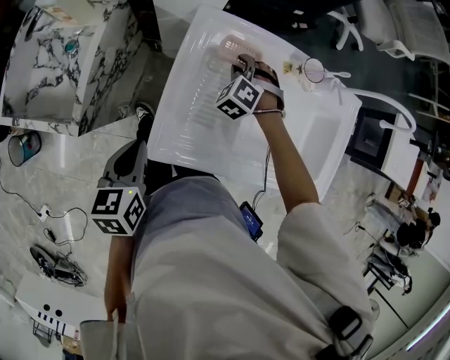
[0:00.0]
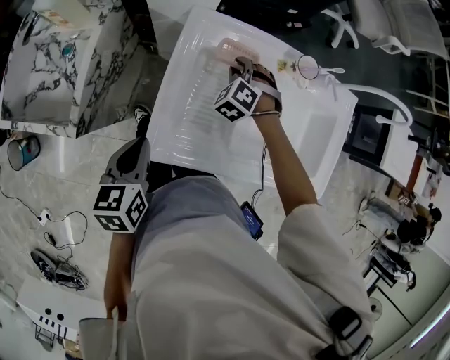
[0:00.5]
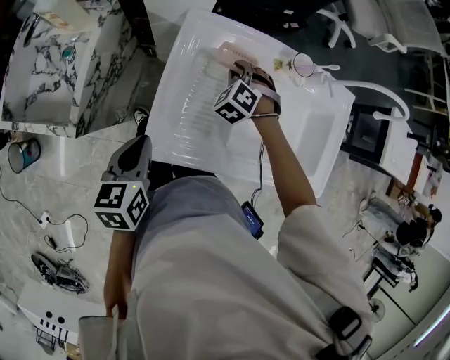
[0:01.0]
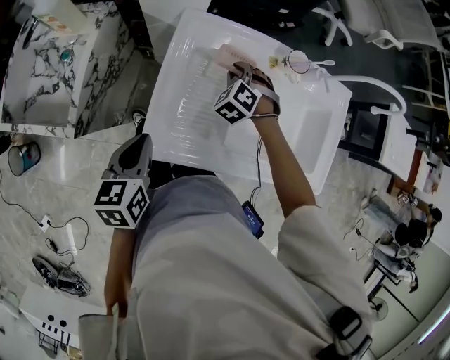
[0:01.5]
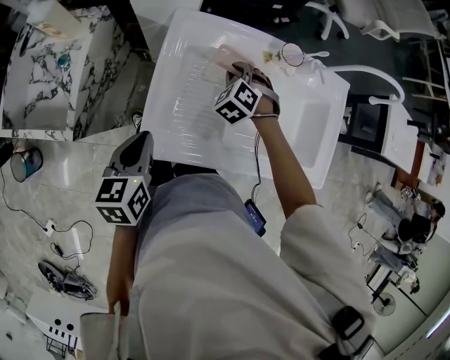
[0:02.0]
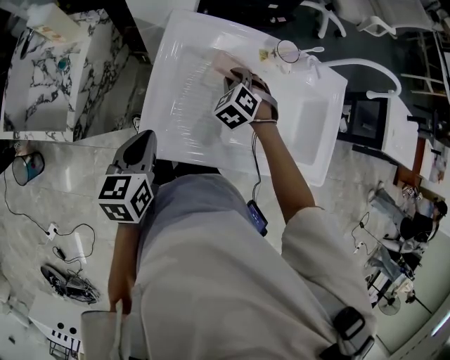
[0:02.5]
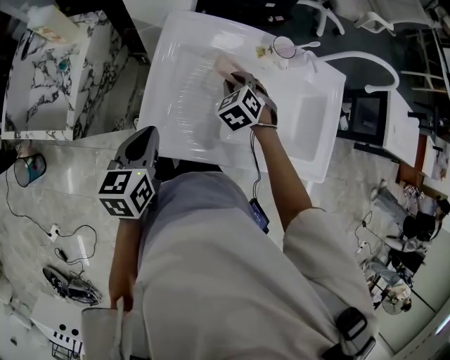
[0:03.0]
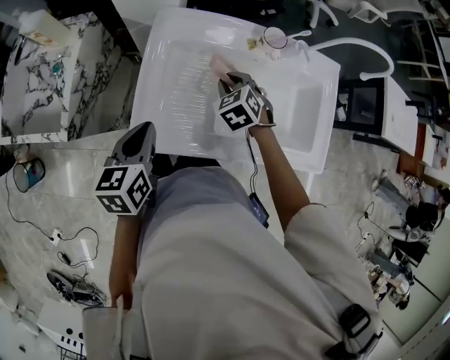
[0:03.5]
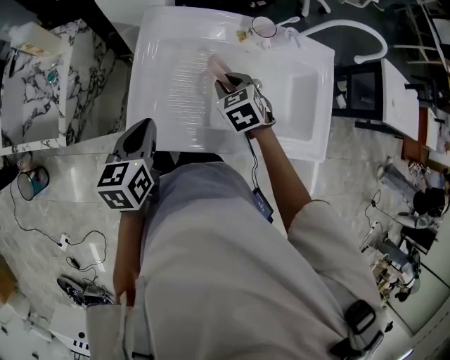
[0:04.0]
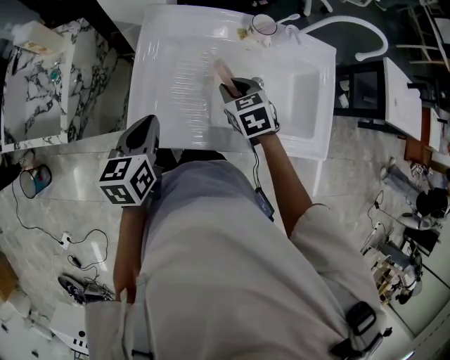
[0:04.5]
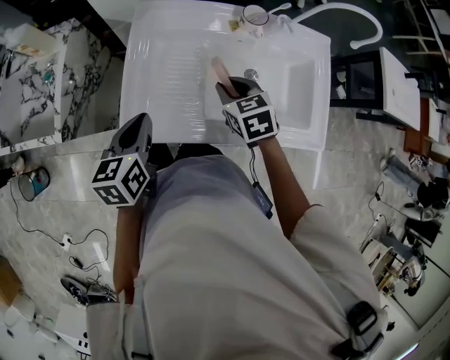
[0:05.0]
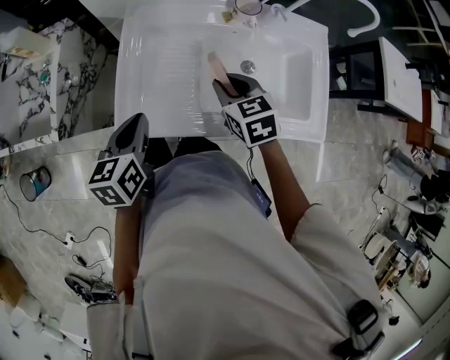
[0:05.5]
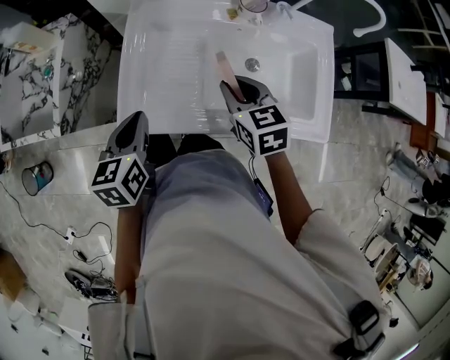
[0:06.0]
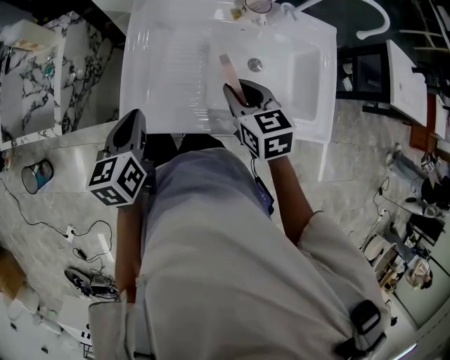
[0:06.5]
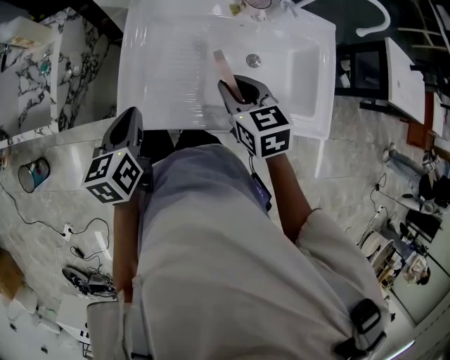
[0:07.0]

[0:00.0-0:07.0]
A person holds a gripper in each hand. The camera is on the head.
0:00.0 to 0:02.0: The left gripper changes place by about 5 cm, while the right gripper heads to the right, covering some 5 cm.
0:02.0 to 0:03.5: The right gripper moves backward, some 5 cm, and changes its angle by about 20 degrees.
0:03.5 to 0:05.0: The right gripper heads backward, covering approximately 5 cm, and changes its angle by approximately 30 degrees.
0:05.0 to 0:07.0: The right gripper moves some 5 cm.

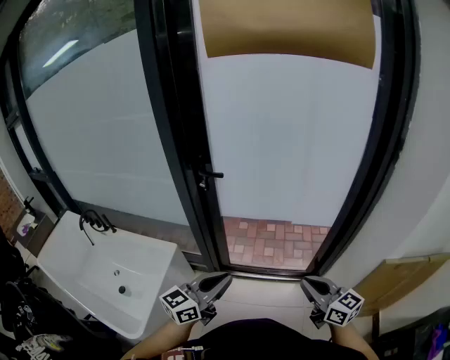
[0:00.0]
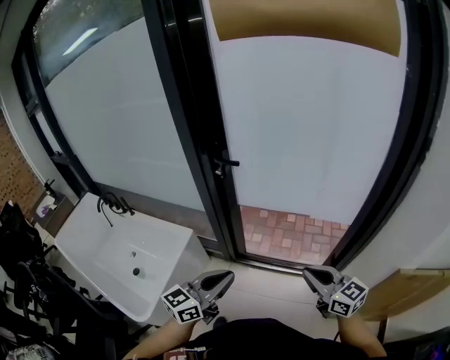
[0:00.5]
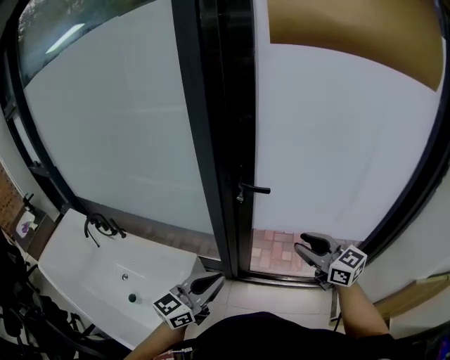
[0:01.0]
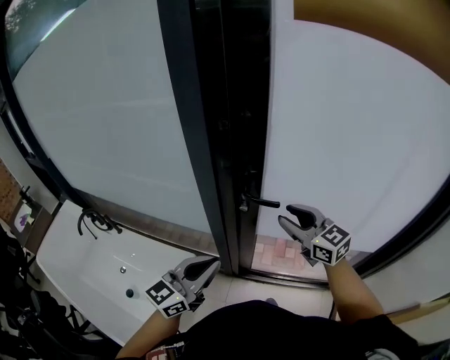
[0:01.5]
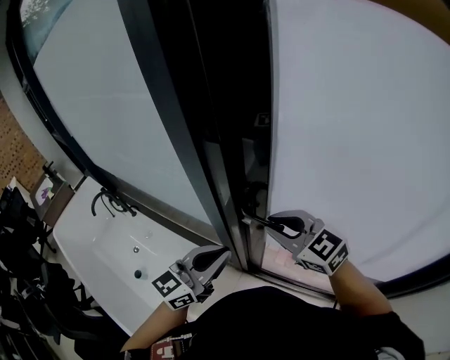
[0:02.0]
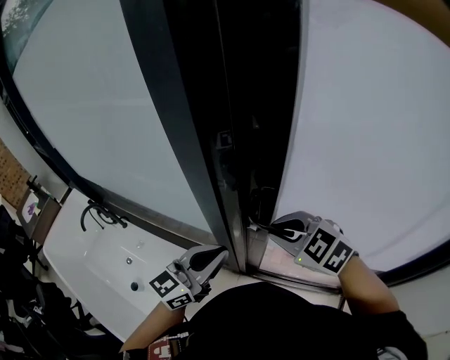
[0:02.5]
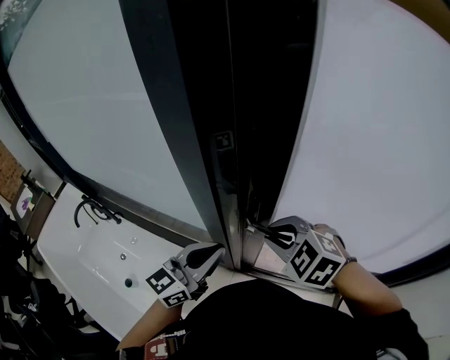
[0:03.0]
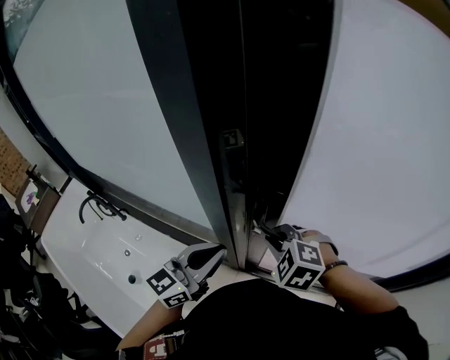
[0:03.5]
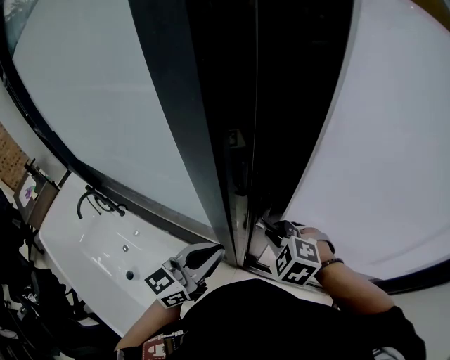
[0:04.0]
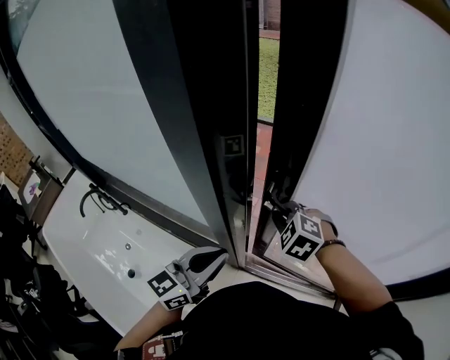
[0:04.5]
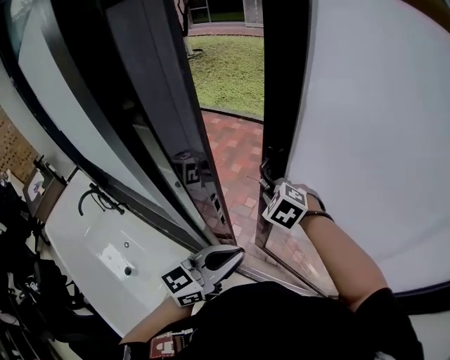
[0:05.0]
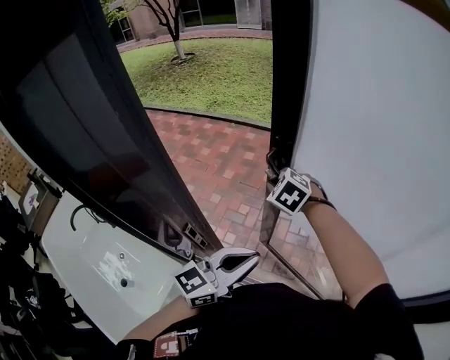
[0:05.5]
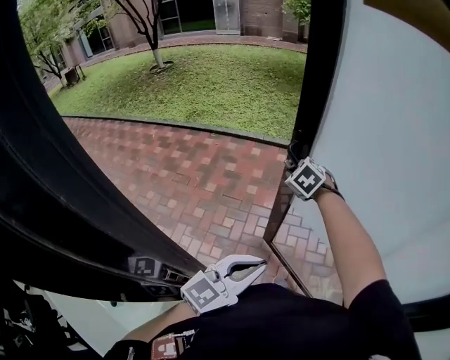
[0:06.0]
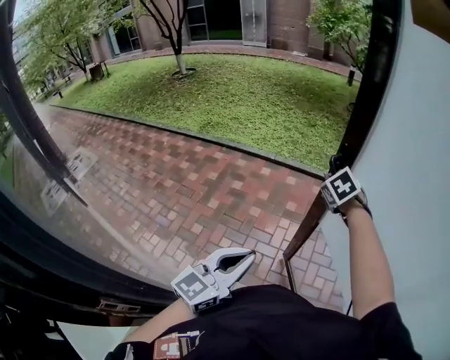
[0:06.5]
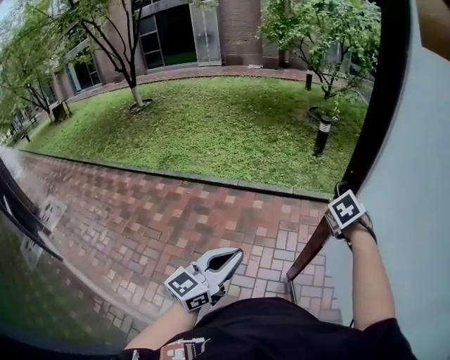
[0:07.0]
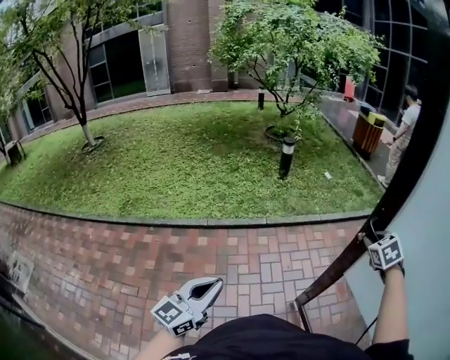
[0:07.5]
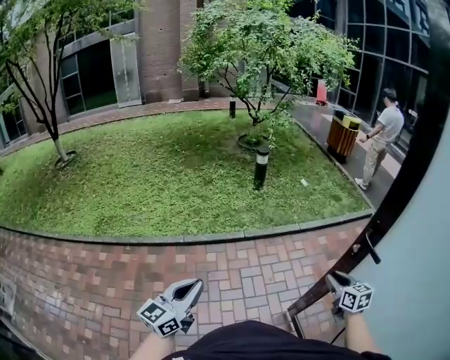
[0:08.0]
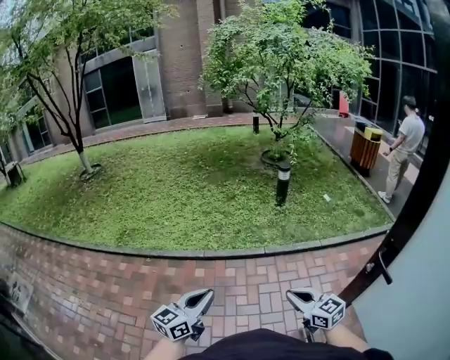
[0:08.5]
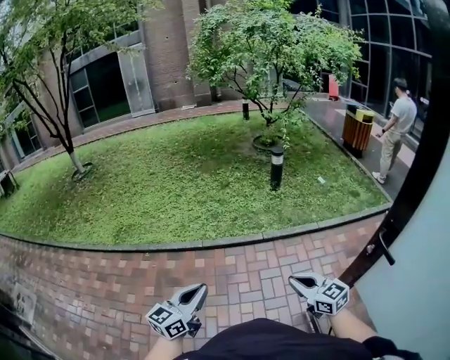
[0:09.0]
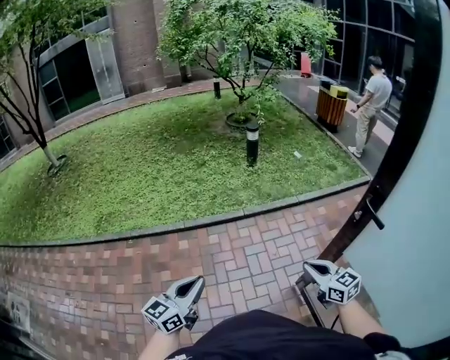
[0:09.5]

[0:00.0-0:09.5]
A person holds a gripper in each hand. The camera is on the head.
0:00.0 to 0:02.0: The right gripper travels forward and to the left by about 50 cm, and changes its angle by roughly 40 degrees. Meanwhile the left gripper shifts some 35 cm forward.
0:02.0 to 0:04.0: The right gripper shifts approximately 10 cm downward, and points its fingers roughly 30 degrees further downward. The left gripper travels to the left by roughly 5 cm.
0:04.0 to 0:05.5: The left gripper heads to the right and forward, covering about 20 cm; the right gripper goes roughly 30 cm forward.
0:05.5 to 0:07.5: The left gripper moves some 60 cm; the right gripper ends up approximately 70 cm from where it was, and changes its angle by approximately 60 degrees.
0:07.5 to 0:09.5: The right gripper moves some 20 cm, rotates some 50 degrees, and opens and closes again.

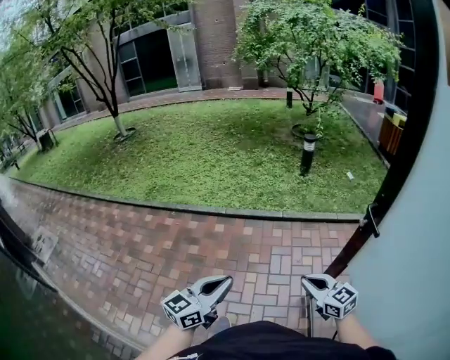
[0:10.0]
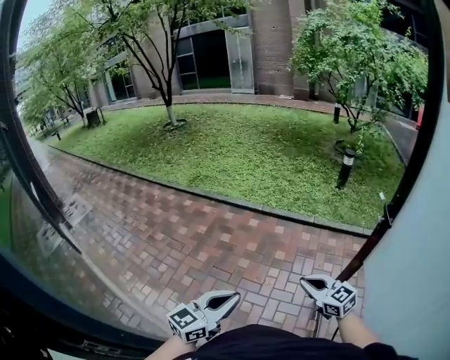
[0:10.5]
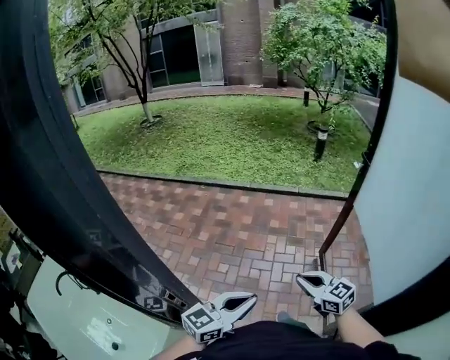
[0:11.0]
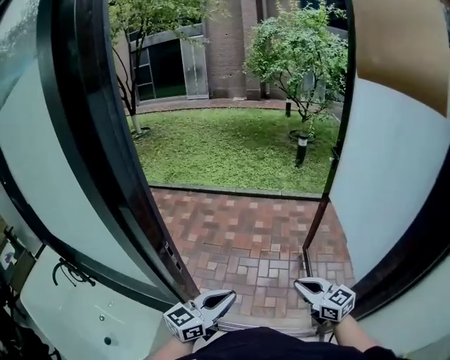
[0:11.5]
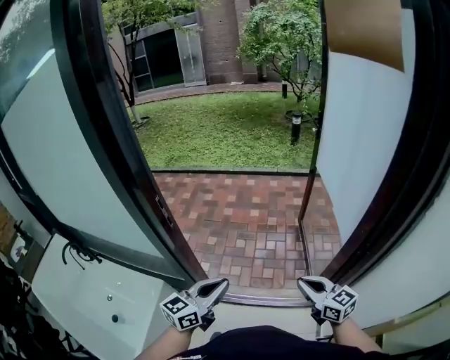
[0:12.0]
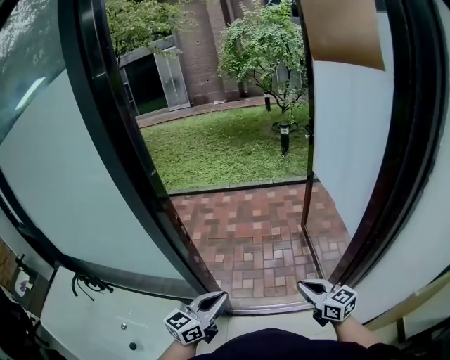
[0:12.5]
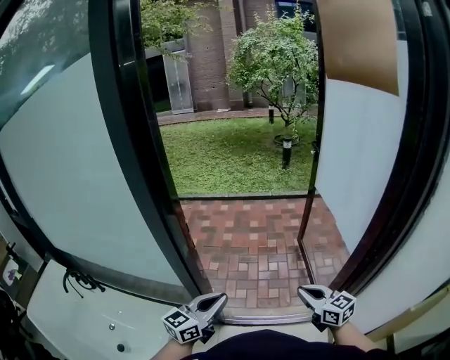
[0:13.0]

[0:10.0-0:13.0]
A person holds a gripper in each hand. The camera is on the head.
0:10.0 to 0:11.5: The two grippers travel together, backward, about 60 cm.
0:11.5 to 0:13.0: The right gripper goes approximately 15 cm backward. Meanwhile the left gripper shifts roughly 15 cm backward and to the left.

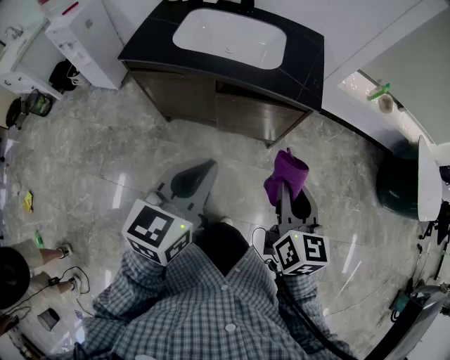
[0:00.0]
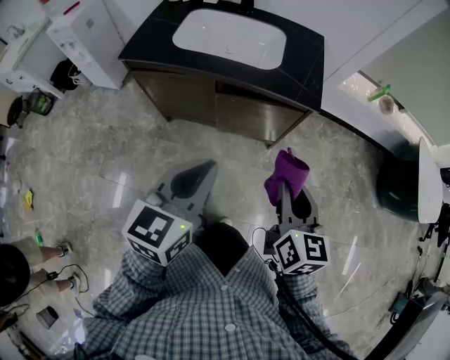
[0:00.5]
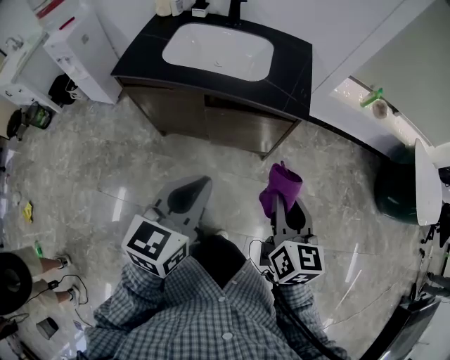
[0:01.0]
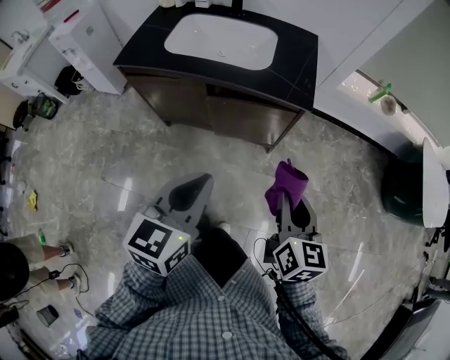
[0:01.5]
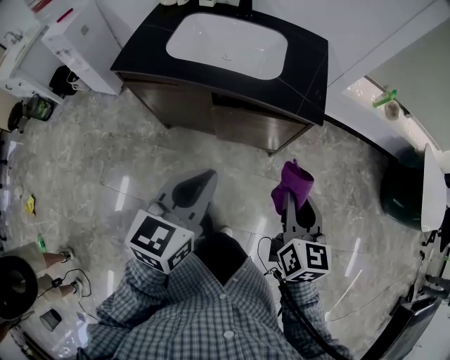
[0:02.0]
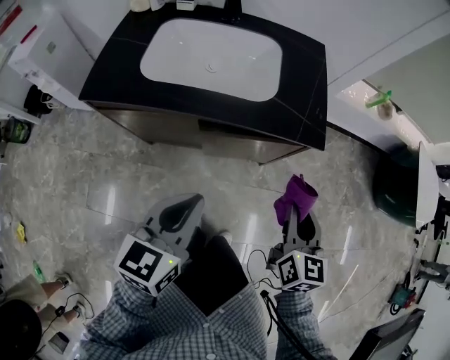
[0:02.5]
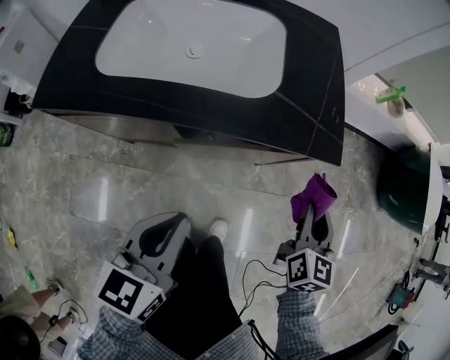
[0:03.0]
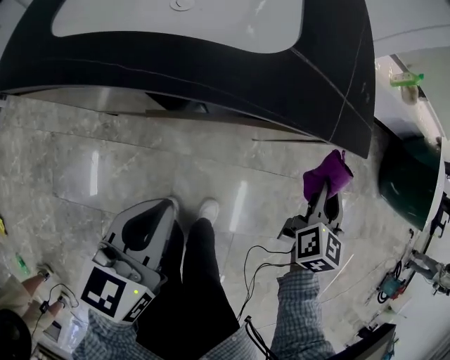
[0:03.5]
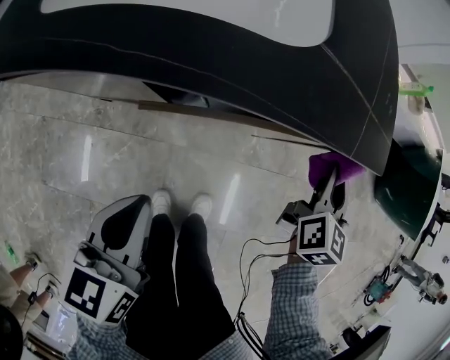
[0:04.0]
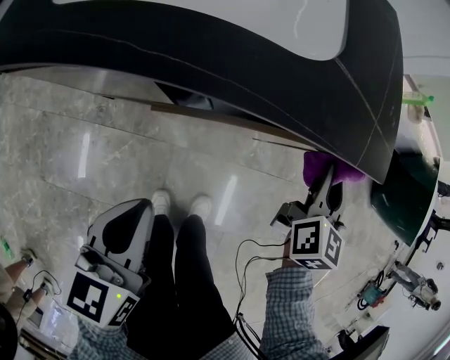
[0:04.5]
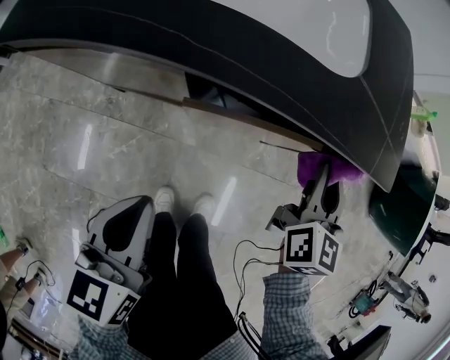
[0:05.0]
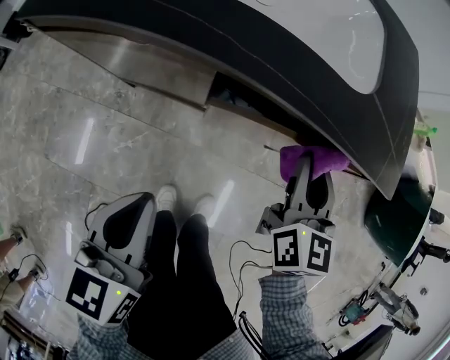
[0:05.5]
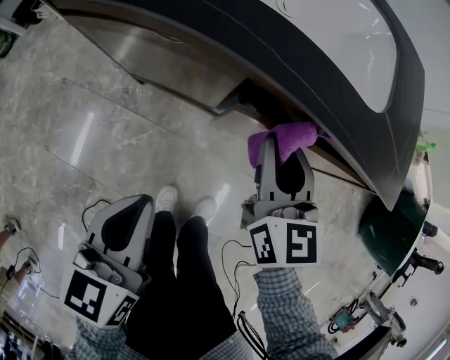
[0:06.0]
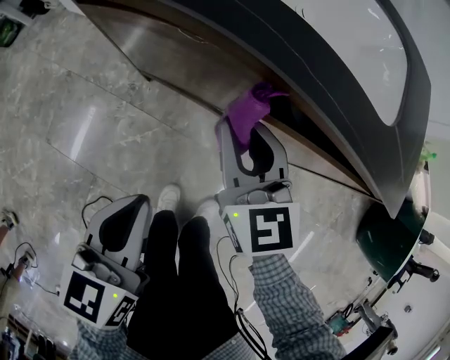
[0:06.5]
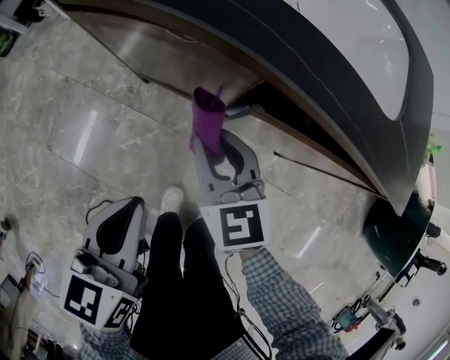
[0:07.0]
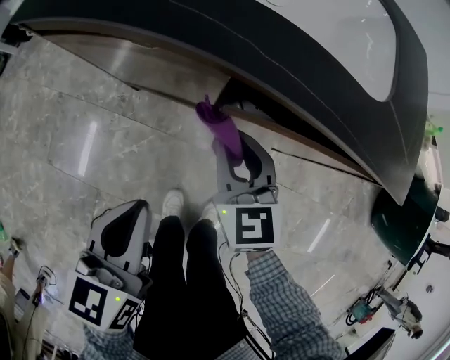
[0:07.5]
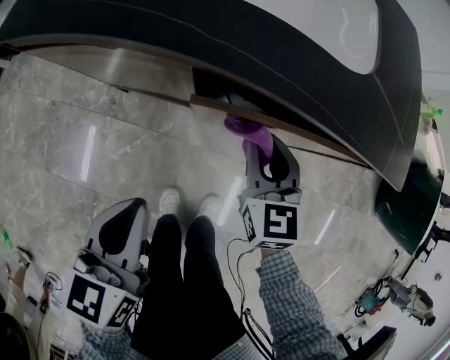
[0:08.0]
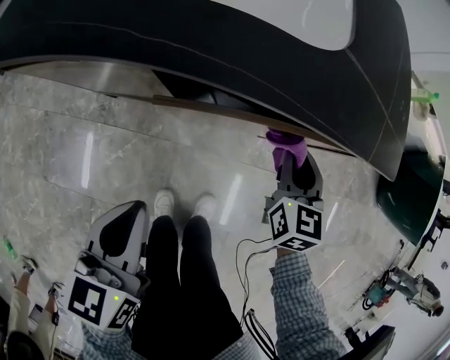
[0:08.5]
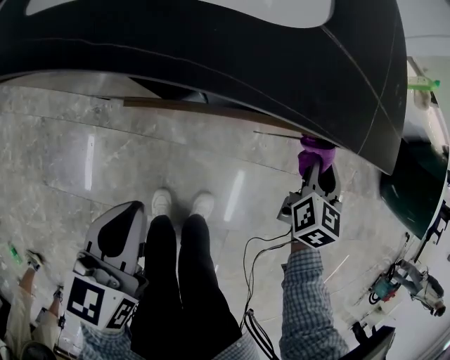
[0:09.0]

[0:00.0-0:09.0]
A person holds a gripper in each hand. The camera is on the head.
0:00.0 to 0:02.0: Both grippers move forward, approximately 5 cm.
0:02.0 to 0:04.5: The right gripper is displaced forward and downward by approximately 40 cm, and turns by approximately 20 degrees. The left gripper shifts approximately 30 cm downward and forward.
0:04.5 to 0:07.0: The right gripper shifts by approximately 40 cm, and rotates about 60 degrees. Meanwhile the left gripper shifts by roughly 15 cm.
0:07.0 to 0:09.0: The left gripper changes place by about 15 cm, while the right gripper moves roughly 50 cm, and rotates roughly 60 degrees.
